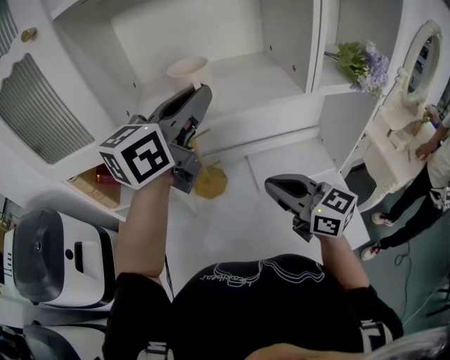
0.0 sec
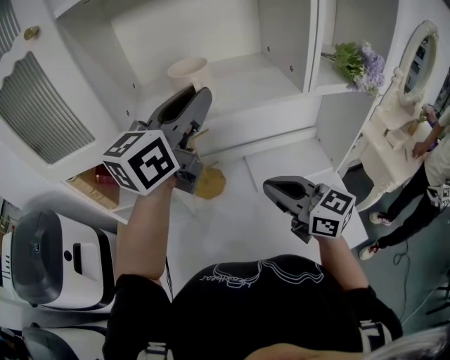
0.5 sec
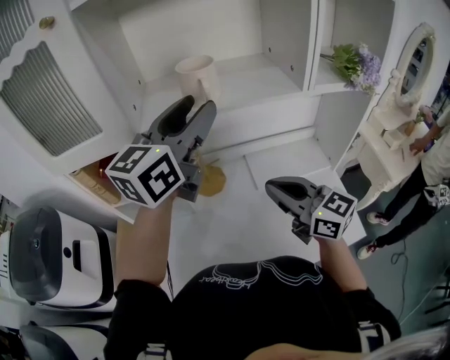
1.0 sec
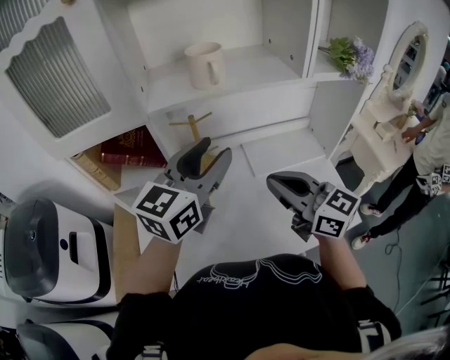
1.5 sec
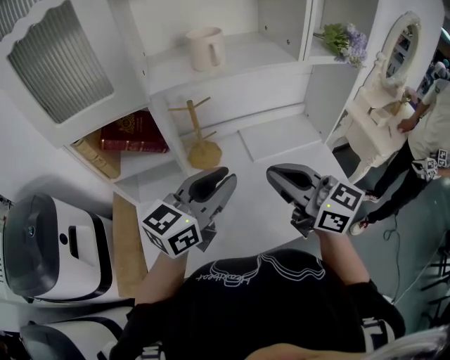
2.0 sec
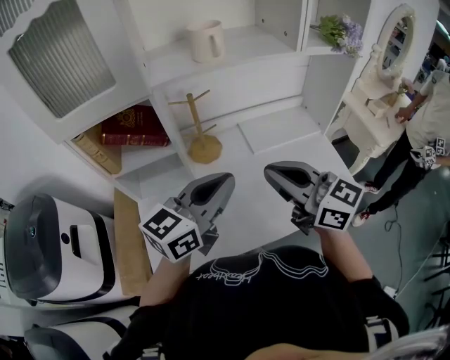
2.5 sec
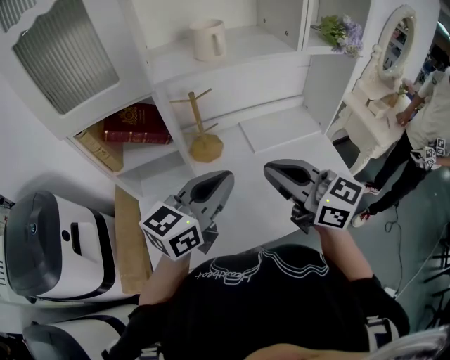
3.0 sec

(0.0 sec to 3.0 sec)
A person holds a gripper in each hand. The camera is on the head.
0.0 sec - 1.5 sec: The left gripper is displaced backward and downward by some 15 cm, and opens; the right gripper goes about 5 cm backward.
1.5 sec - 3.0 sec: The left gripper travels backward and downward by approximately 15 cm, and closes its fingers, while the right gripper shifts some 5 cm backward.

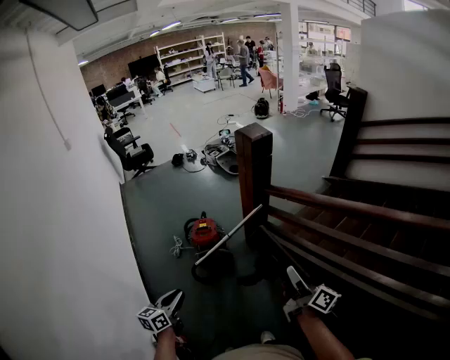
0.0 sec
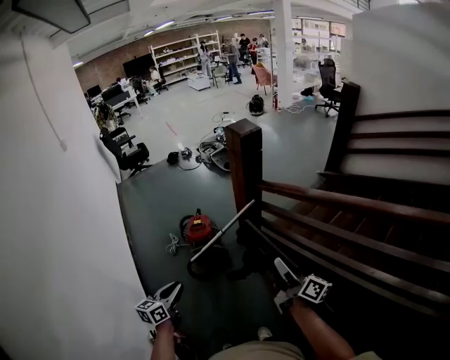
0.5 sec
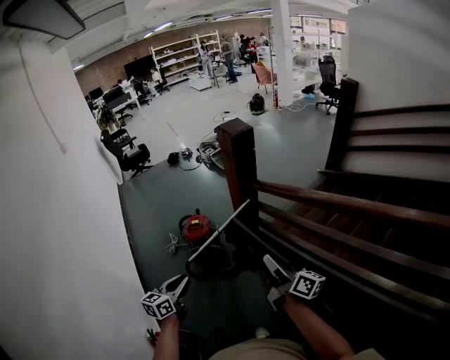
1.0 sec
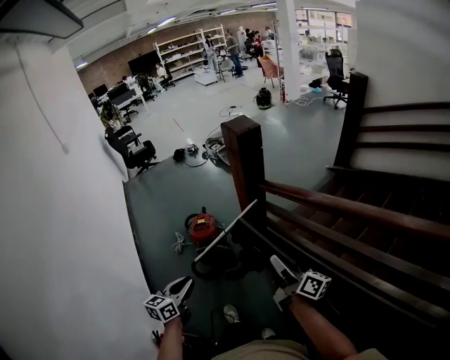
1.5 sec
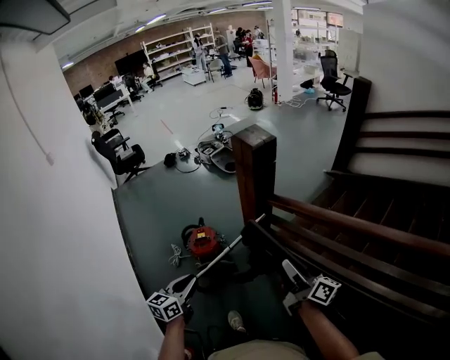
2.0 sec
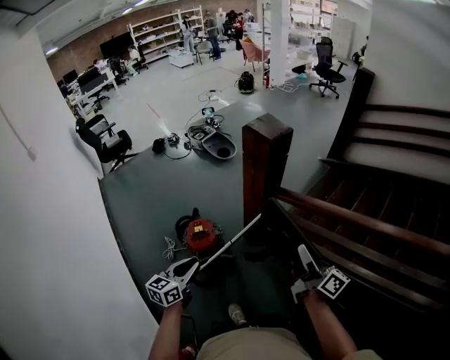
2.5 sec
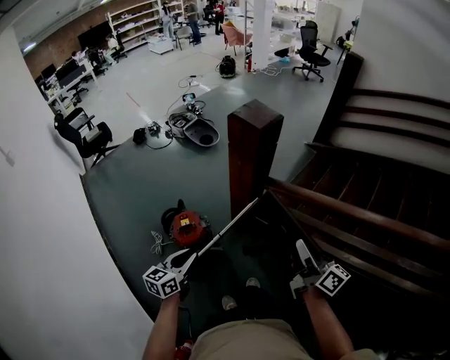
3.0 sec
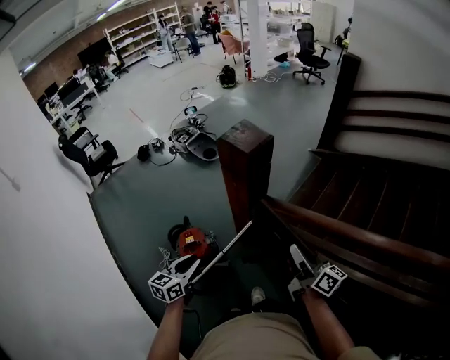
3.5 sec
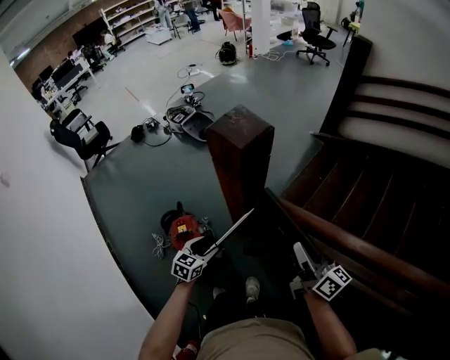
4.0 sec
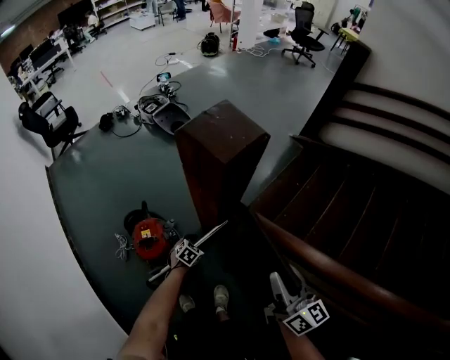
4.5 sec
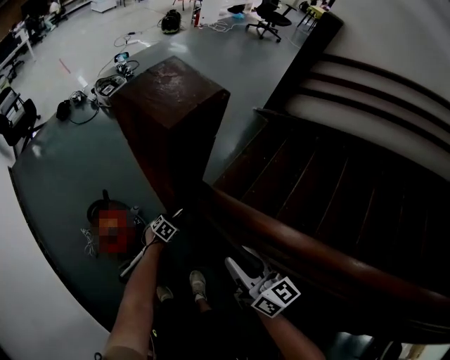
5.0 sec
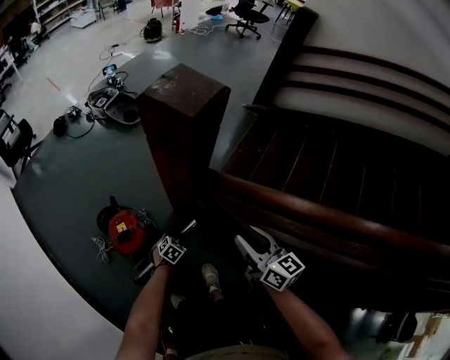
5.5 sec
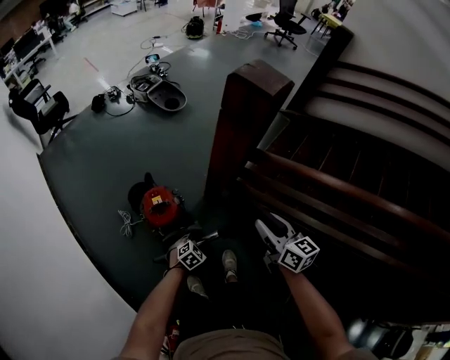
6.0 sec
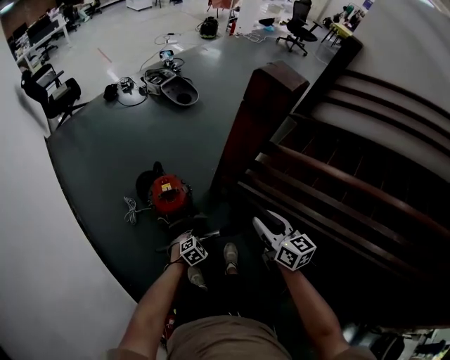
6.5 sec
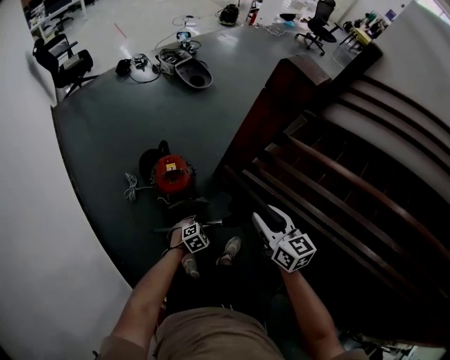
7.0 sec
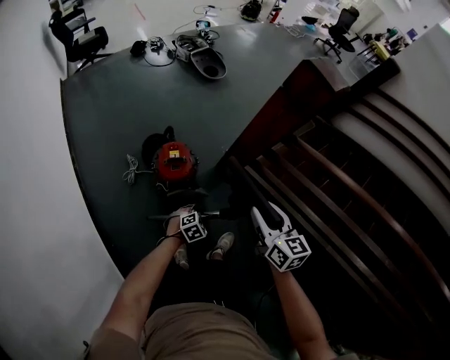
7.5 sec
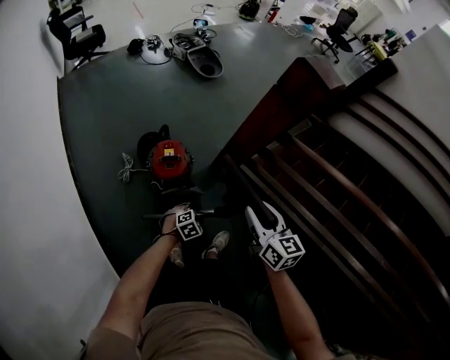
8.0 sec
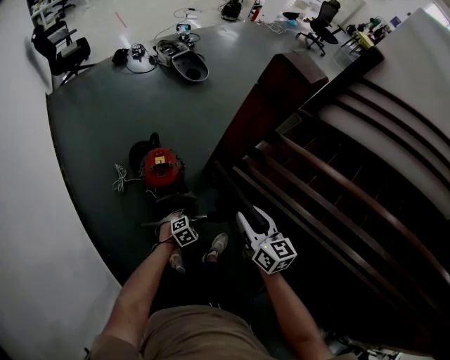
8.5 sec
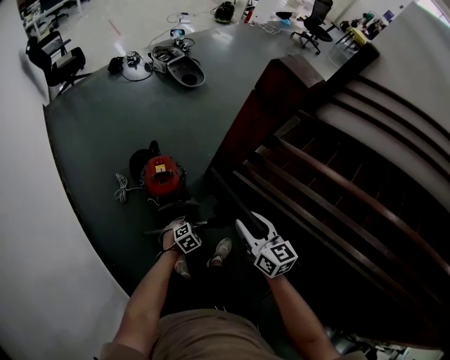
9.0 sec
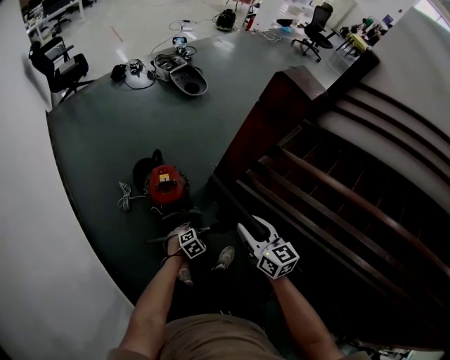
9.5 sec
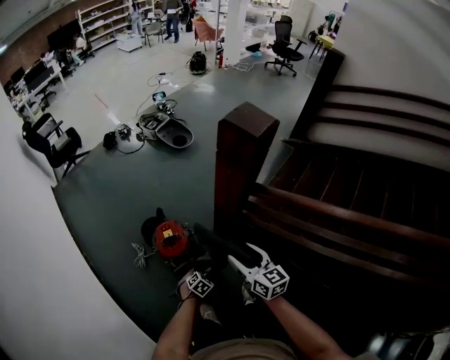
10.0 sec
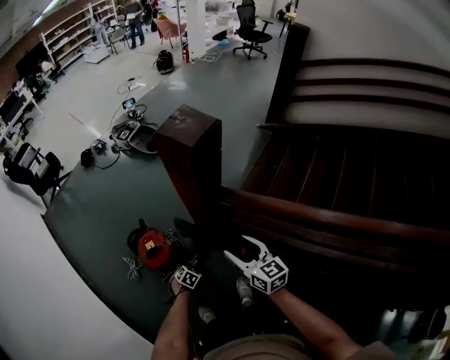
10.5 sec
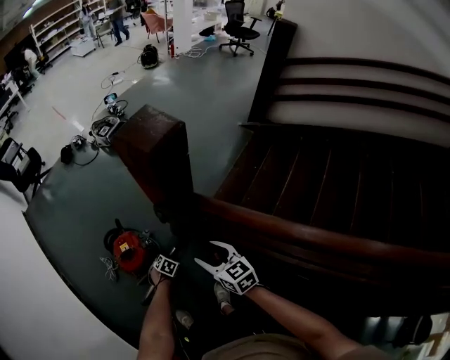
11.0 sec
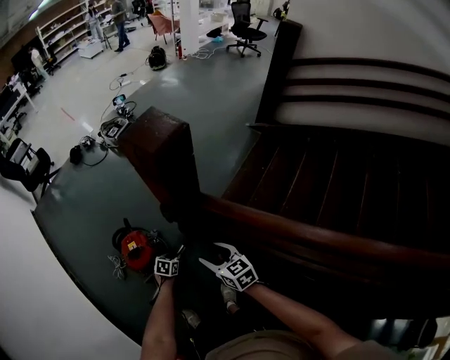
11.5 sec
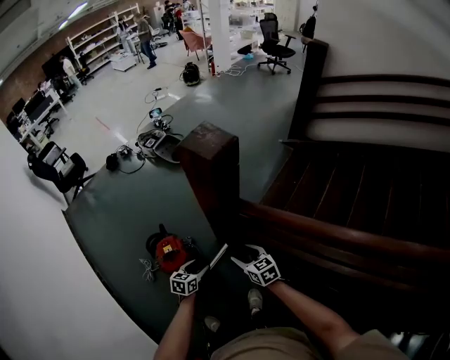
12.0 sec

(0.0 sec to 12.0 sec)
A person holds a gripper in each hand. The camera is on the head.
0.0 sec - 2.0 sec: Both grippers travel together forward, about 20 cm.
2.0 sec - 4.0 sec: The left gripper heads forward and downward, covering approximately 40 cm, changes its angle by approximately 30 degrees, and opens its fingers; the right gripper travels forward by some 25 cm, and turns by roughly 20 degrees.
4.0 sec - 6.0 sec: The right gripper goes some 20 cm to the left, backward and downward, and changes its angle by some 30 degrees. Meanwhile the left gripper goes about 25 cm downward and backward, swivels some 40 degrees, and closes its fingers.
6.0 sec - 8.0 sec: The left gripper goes roughly 10 cm backward. Meanwhile the right gripper travels backward and to the left by some 15 cm.
8.0 sec - 10.0 sec: Both grippers travel together forward, roughly 5 cm.
10.0 sec - 12.0 sec: The left gripper shifts roughly 20 cm upward and forward, rotates roughly 40 degrees, and opens up, while the right gripper shifts about 15 cm to the right, downward and forward.

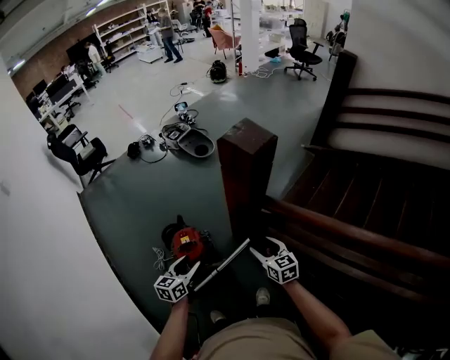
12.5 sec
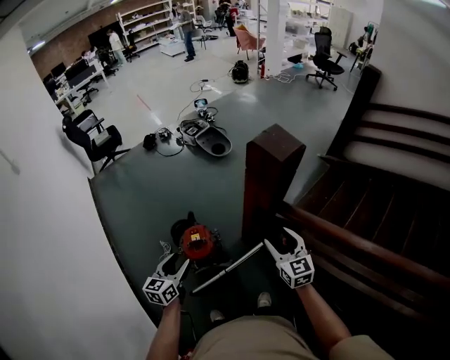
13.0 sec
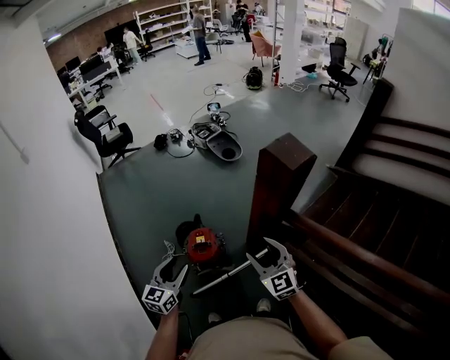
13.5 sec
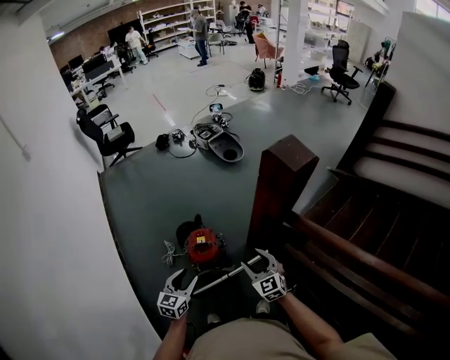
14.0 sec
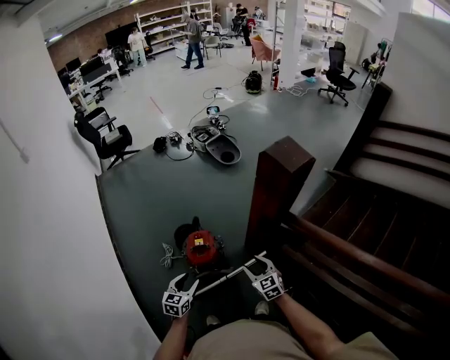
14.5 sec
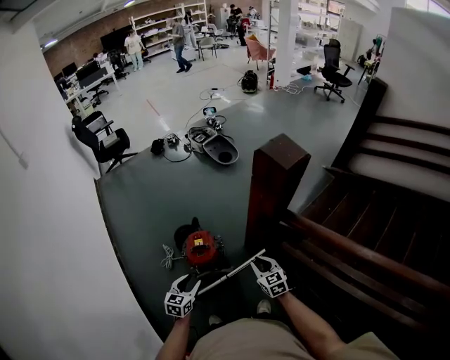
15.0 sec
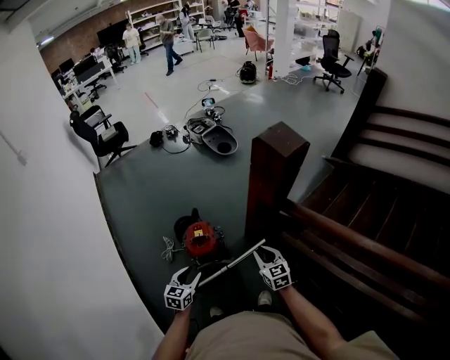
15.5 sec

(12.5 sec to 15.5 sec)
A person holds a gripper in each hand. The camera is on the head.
12.5 sec - 14.0 sec: The left gripper is displaced to the left and backward by roughly 10 cm. The right gripper goes some 15 cm to the left, and turns by about 30 degrees.
14.0 sec - 15.5 sec: The left gripper travels downward by some 5 cm. The right gripper travels downward and to the right by approximately 10 cm, turns by roughly 20 degrees, and closes.

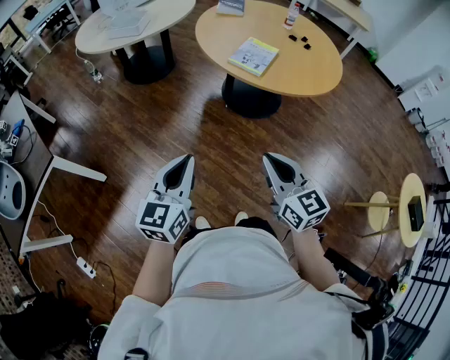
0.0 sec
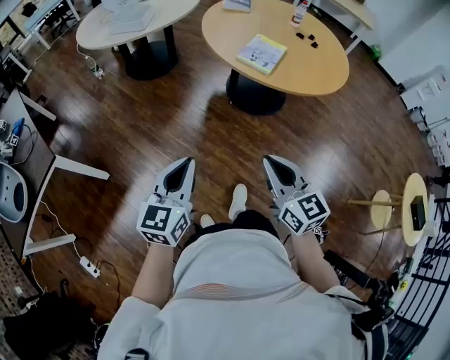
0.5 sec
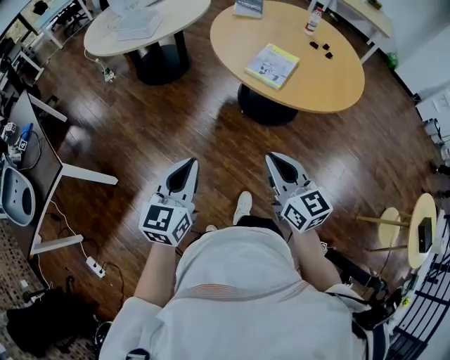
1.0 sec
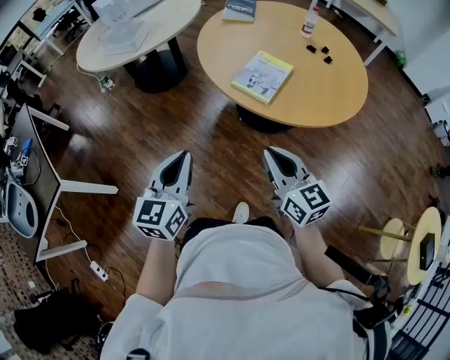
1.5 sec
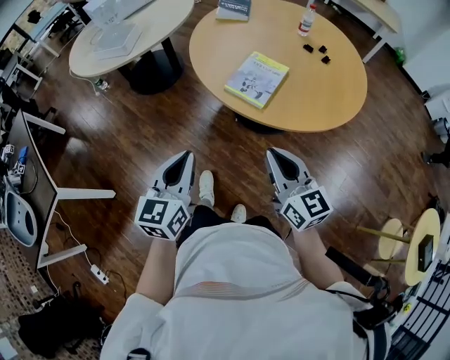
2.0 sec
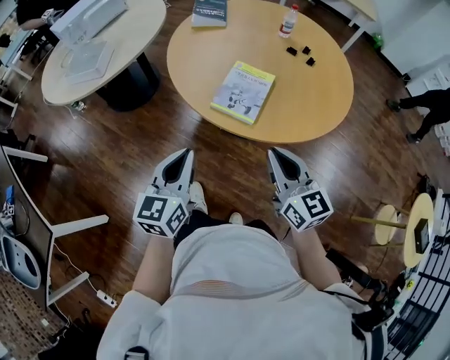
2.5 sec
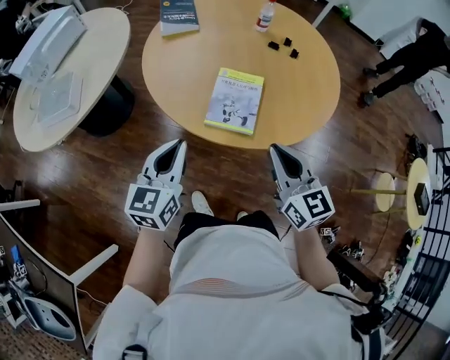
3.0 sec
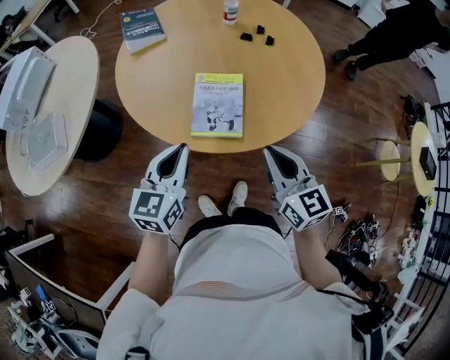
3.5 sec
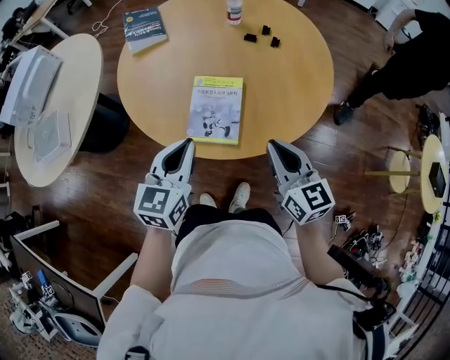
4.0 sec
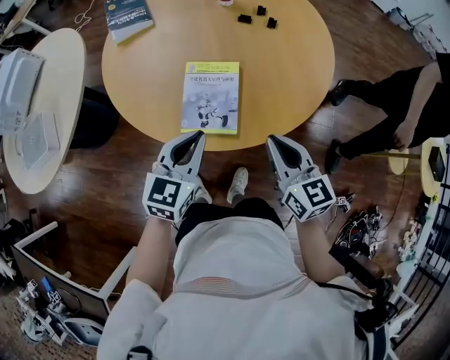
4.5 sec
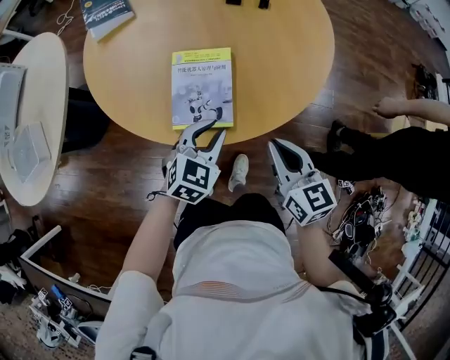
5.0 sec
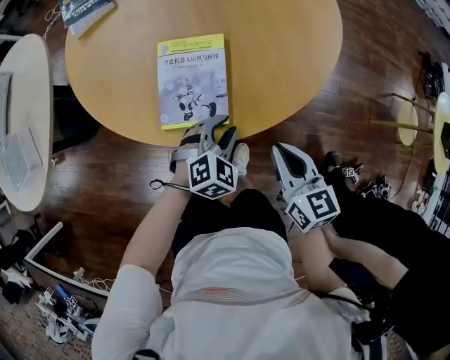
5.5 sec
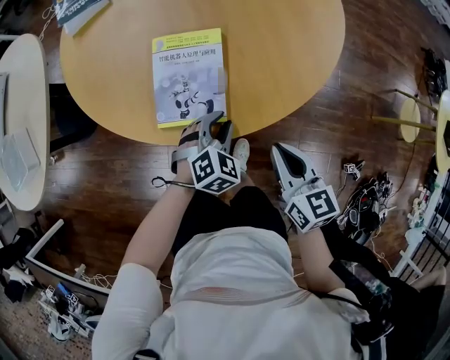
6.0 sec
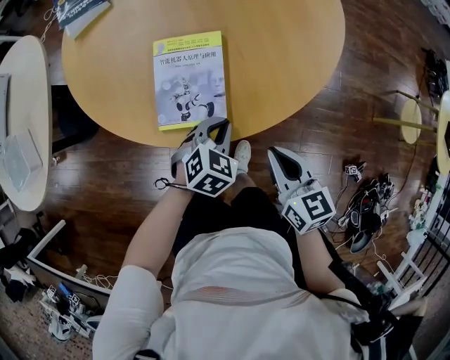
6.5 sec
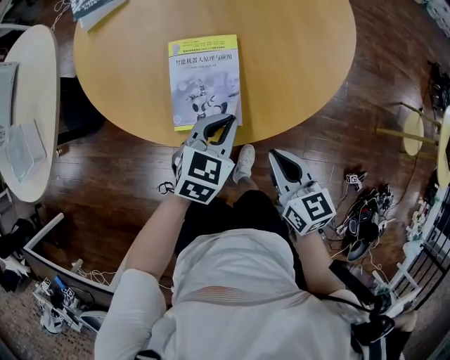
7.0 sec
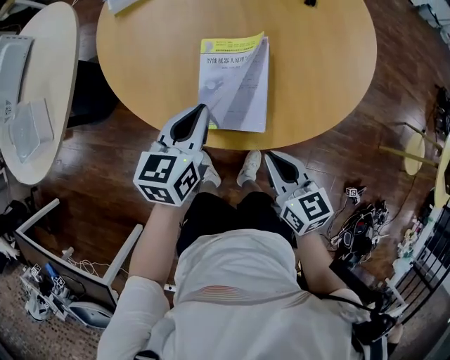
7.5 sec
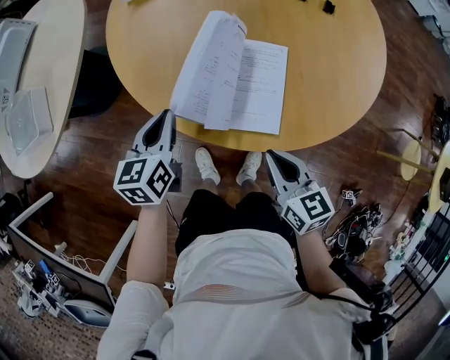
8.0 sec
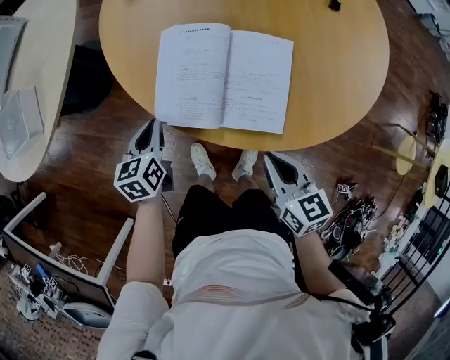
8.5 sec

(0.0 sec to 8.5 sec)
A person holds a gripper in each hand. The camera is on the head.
0.0 sec - 2.0 sec: The left gripper moves forward, roughly 25 cm; the right gripper heads forward and to the right, covering some 30 cm.
2.0 sec - 4.0 sec: The right gripper changes place by some 20 cm, and turns by approximately 30 degrees, while the left gripper changes place by approximately 30 cm, and changes its angle by roughly 30 degrees.
4.0 sec - 6.5 sec: The left gripper heads downward and to the right, covering roughly 25 cm, tips its fingers downward by about 30 degrees, and opens, then closes once more. Meanwhile the right gripper travels downward by some 15 cm, and turns by roughly 20 degrees.
6.5 sec - 8.5 sec: The right gripper shifts some 15 cm to the left; the left gripper shifts approximately 35 cm to the left, and rotates around the line of its fingers by roughly 60 degrees, counterclockwise from behind.
